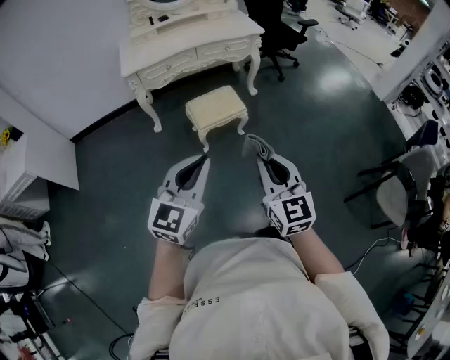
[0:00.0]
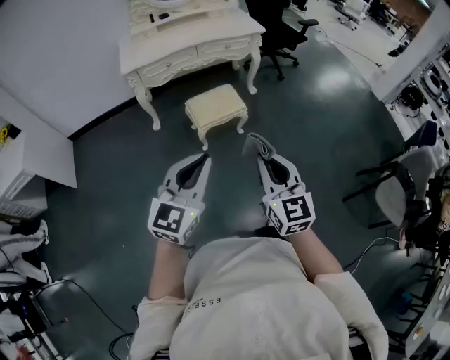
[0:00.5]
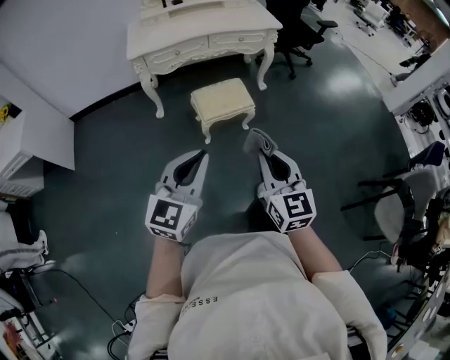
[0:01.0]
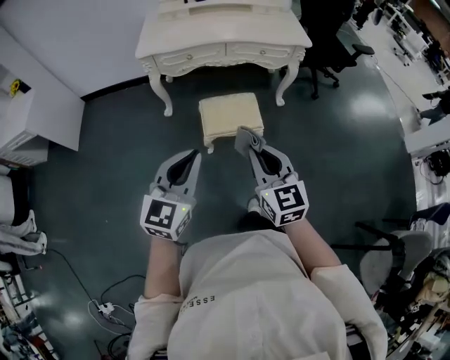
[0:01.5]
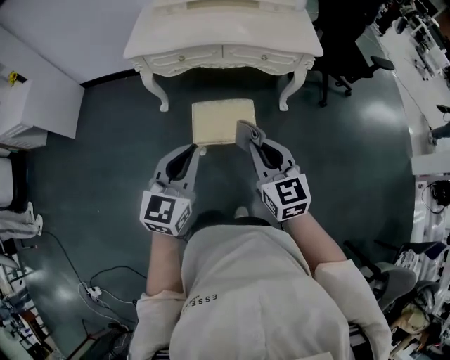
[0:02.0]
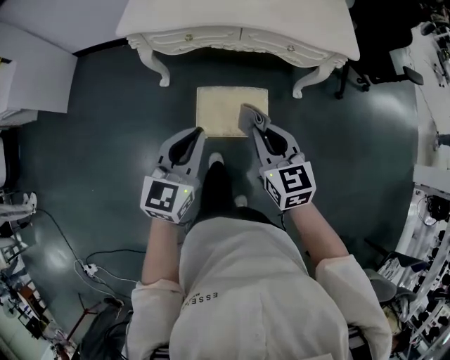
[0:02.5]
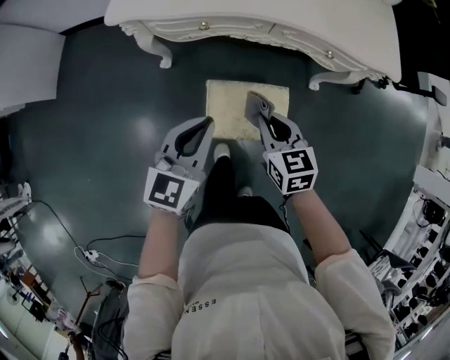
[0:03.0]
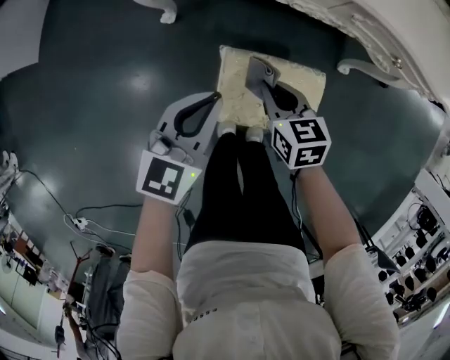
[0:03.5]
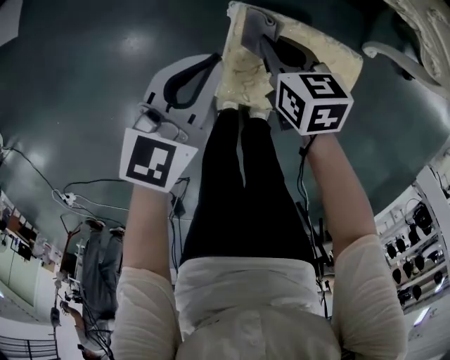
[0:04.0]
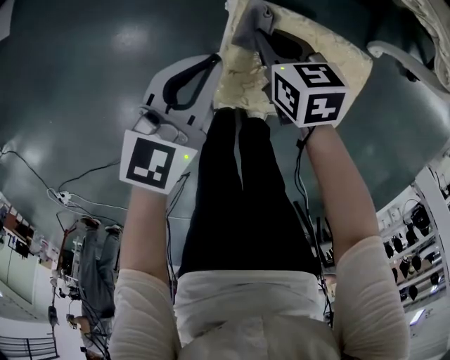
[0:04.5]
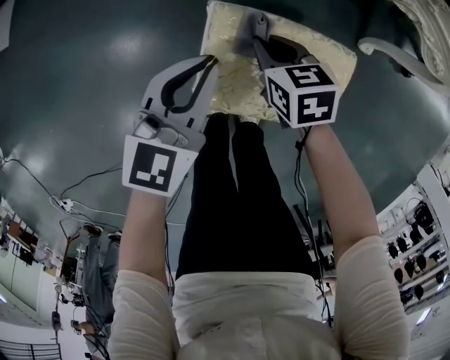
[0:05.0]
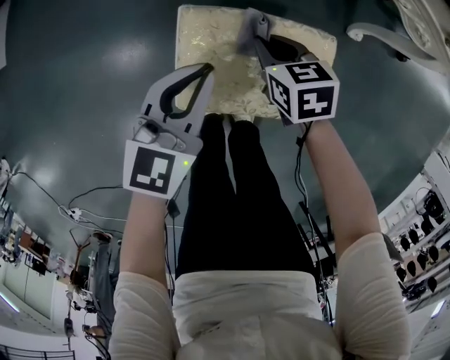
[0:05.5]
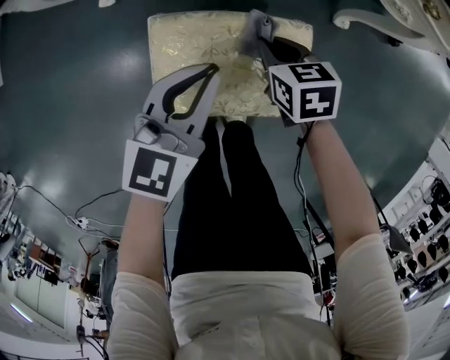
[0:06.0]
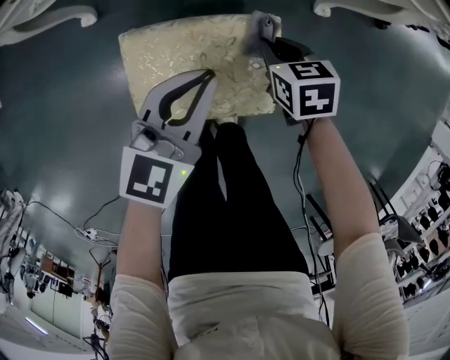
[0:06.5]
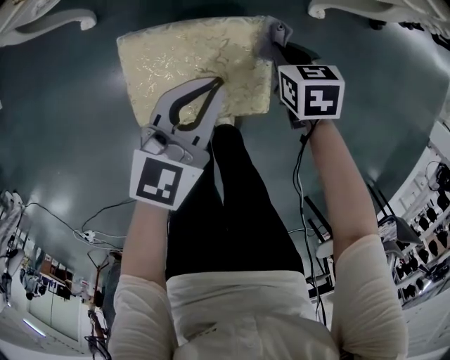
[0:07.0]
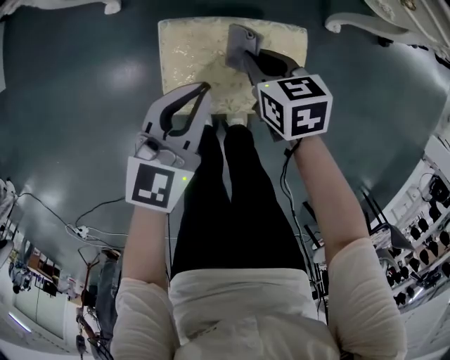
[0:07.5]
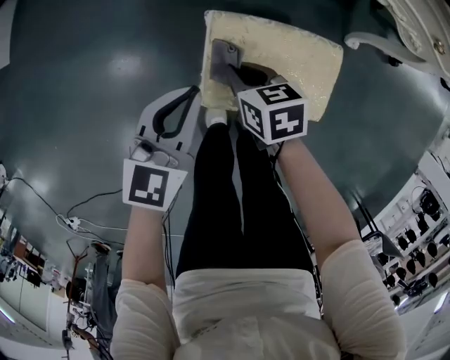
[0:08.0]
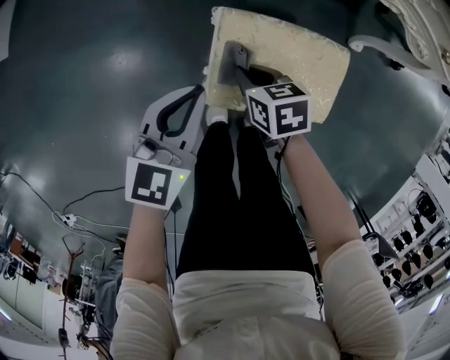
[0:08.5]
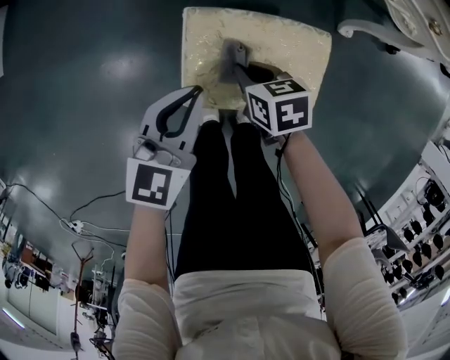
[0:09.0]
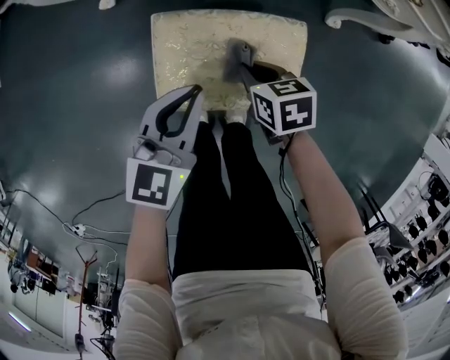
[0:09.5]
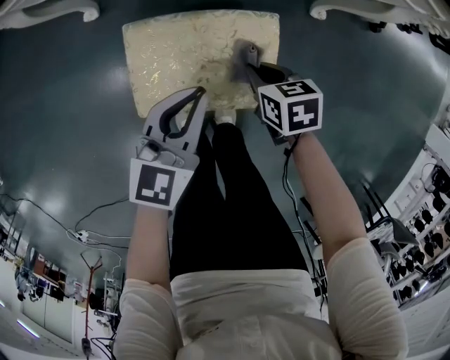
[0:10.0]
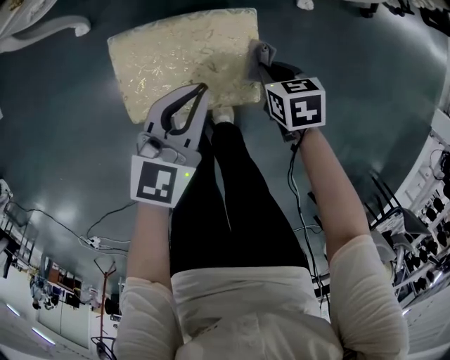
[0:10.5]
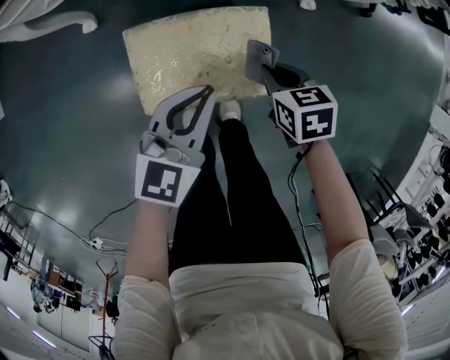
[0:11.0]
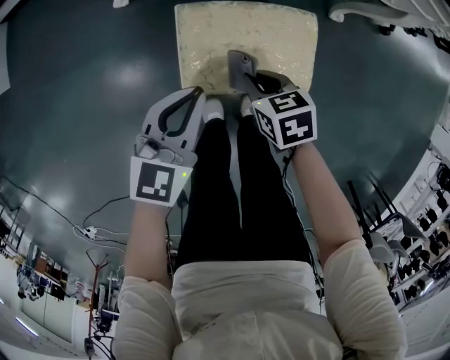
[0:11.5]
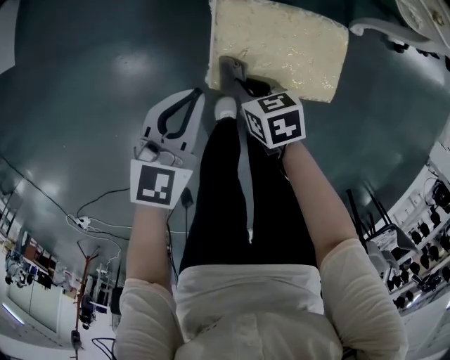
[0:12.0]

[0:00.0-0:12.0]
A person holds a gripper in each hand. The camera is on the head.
0:00.0 to 0:02.0: The left gripper moves about 35 cm, and swivels about 30 degrees; the right gripper ends up roughly 40 cm from where it was, and rotates some 30 degrees.
0:02.0 to 0:04.0: The two grippers go about 60 cm downward and forward. The right gripper angles its fingers downward, by approximately 30 degrees.
0:04.0 to 0:06.0: Both grippers move to the right, roughly 15 cm.
0:06.0 to 0:08.0: The two grippers go some 15 cm to the left.
0:08.0 to 0:10.0: The two grippers go roughly 20 cm to the right.
0:10.0 to 0:12.0: The two grippers go approximately 20 cm to the left.

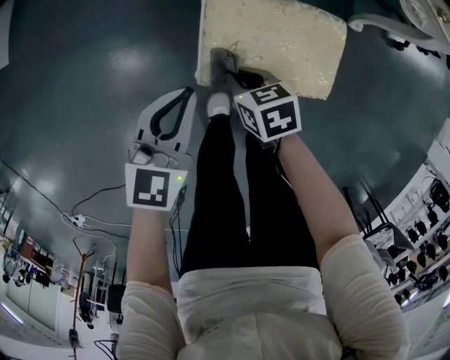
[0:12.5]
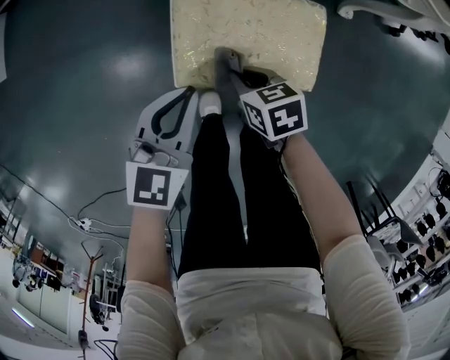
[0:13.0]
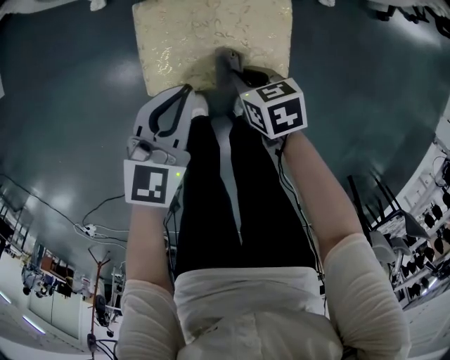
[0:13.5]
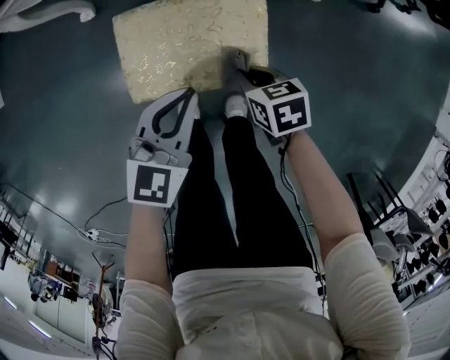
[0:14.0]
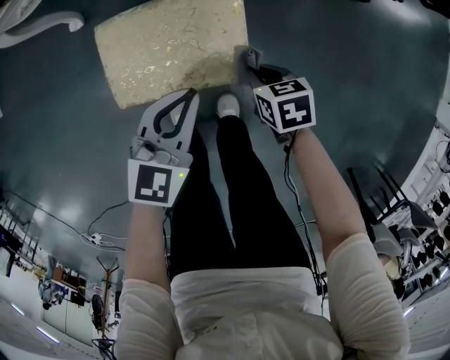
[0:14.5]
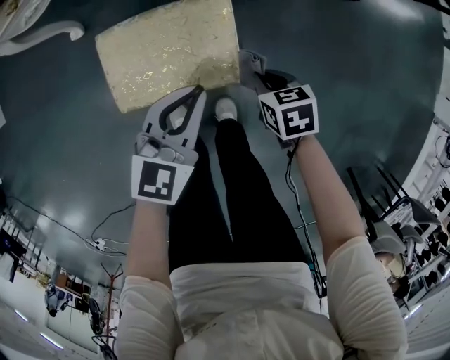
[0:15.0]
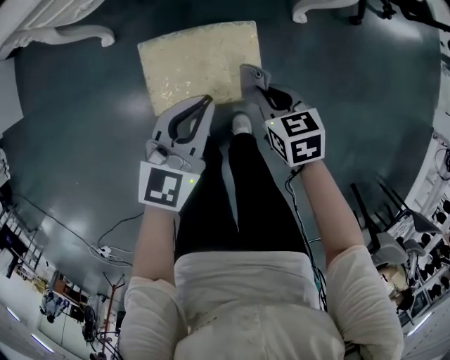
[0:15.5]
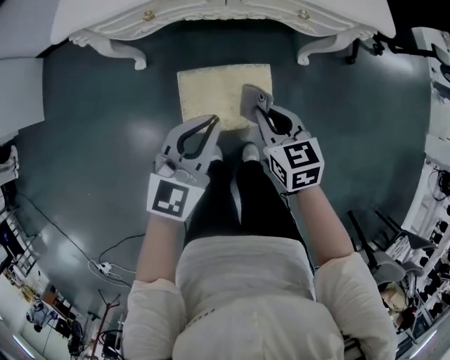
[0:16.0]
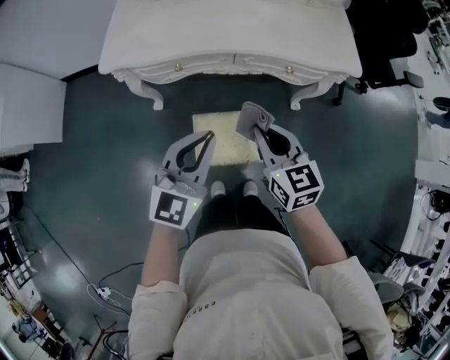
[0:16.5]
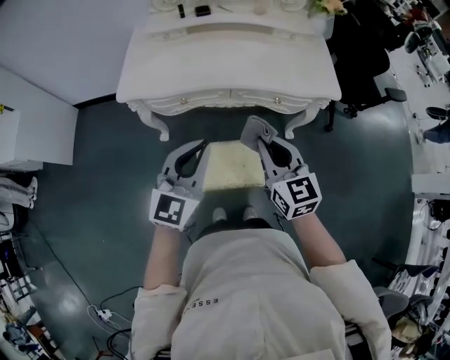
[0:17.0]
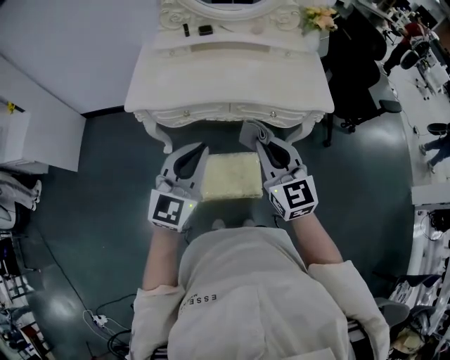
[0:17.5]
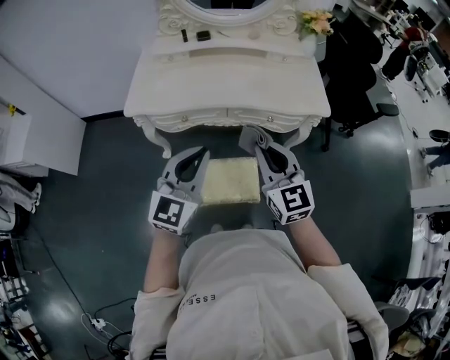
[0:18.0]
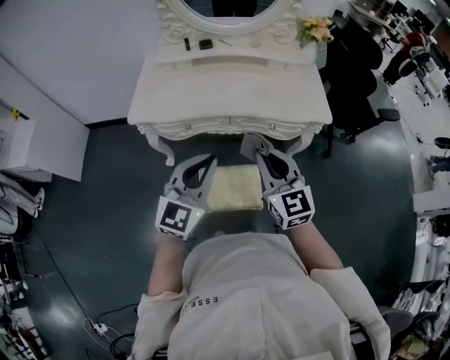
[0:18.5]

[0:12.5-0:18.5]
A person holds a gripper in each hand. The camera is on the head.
0:12.5 to 0:14.5: The grippers both shift to the right by about 25 cm.
0:14.5 to 0:16.5: Both grippers travel together upward, about 40 cm. The right gripper angles its fingers upward, by approximately 40 degrees. The left gripper swivels roughly 30 degrees.
0:16.5 to 0:18.5: The two grippers go approximately 15 cm upward. The right gripper changes its angle by approximately 20 degrees.

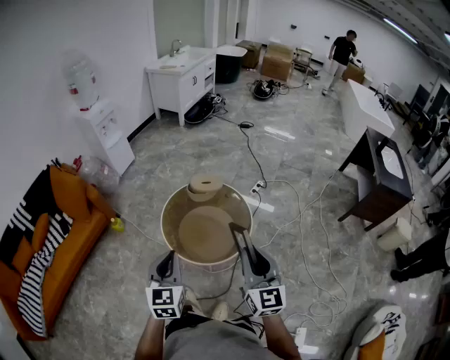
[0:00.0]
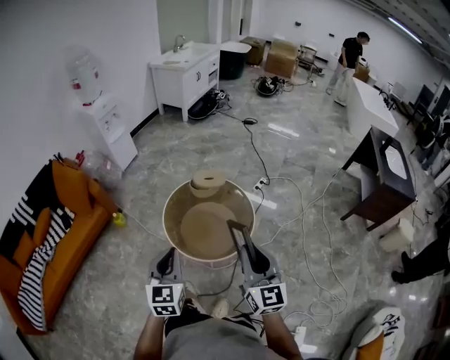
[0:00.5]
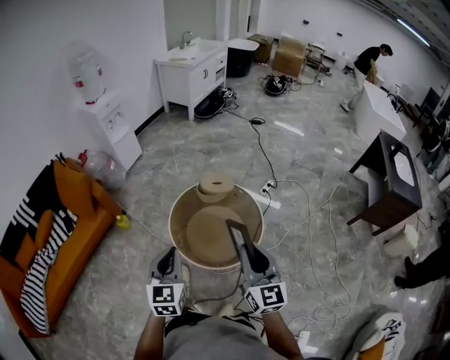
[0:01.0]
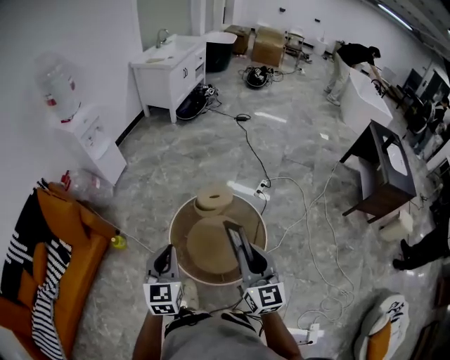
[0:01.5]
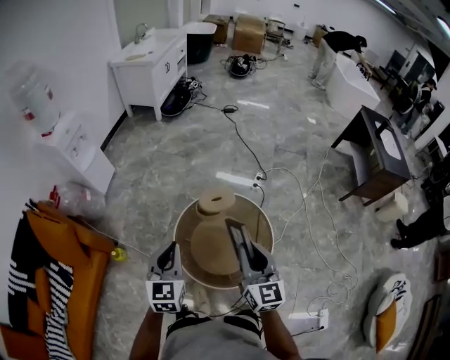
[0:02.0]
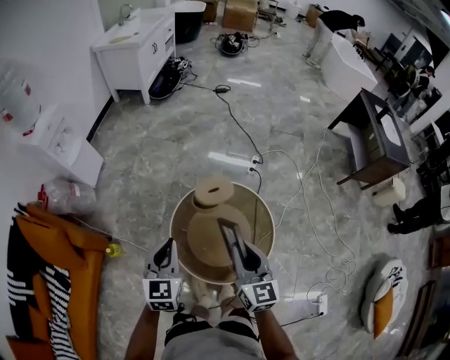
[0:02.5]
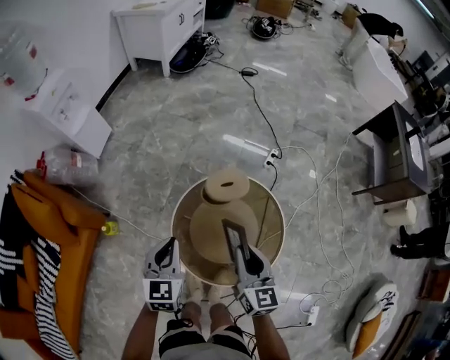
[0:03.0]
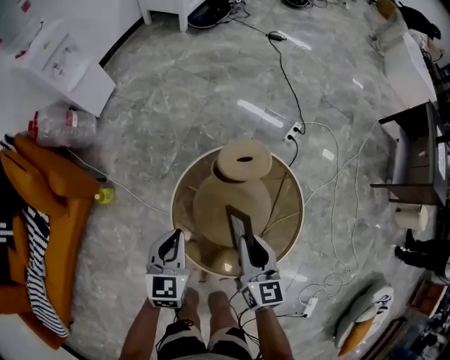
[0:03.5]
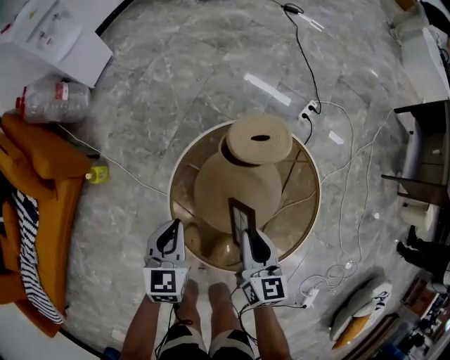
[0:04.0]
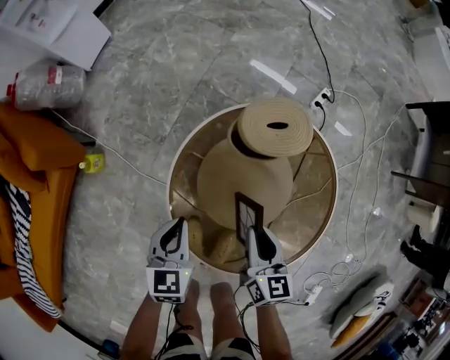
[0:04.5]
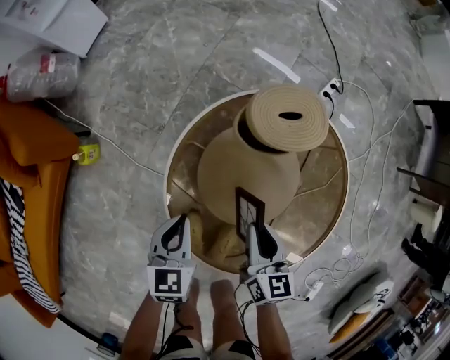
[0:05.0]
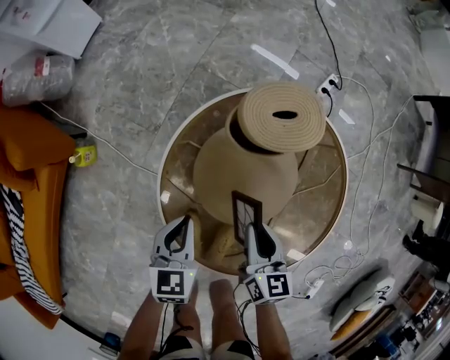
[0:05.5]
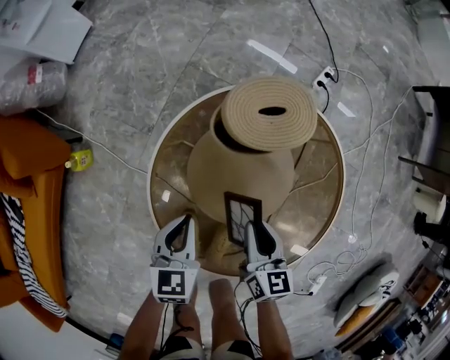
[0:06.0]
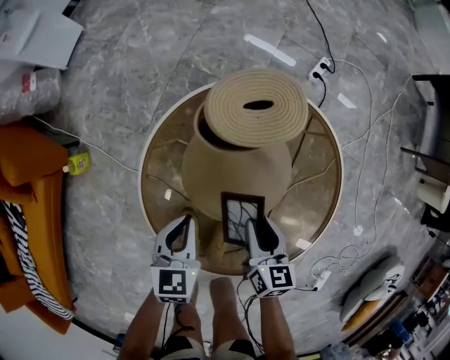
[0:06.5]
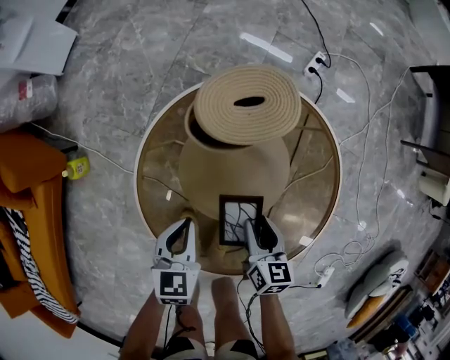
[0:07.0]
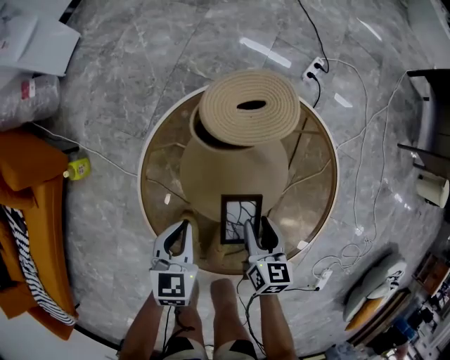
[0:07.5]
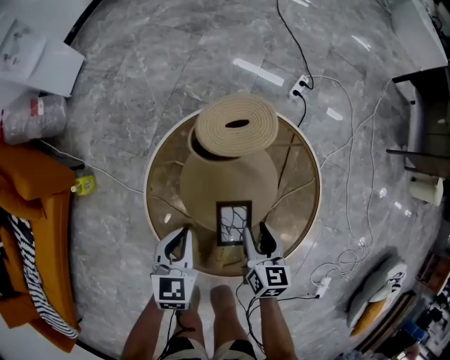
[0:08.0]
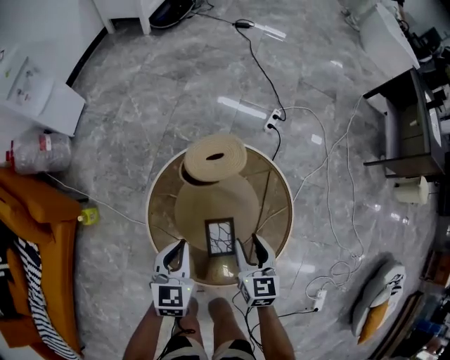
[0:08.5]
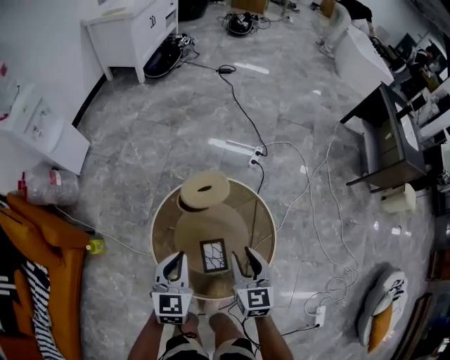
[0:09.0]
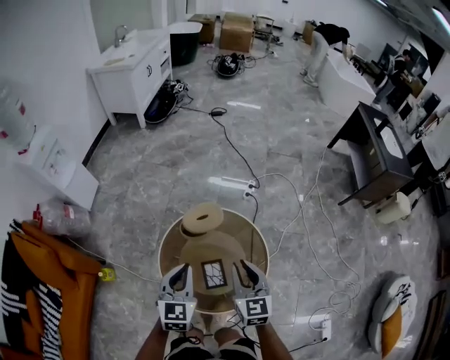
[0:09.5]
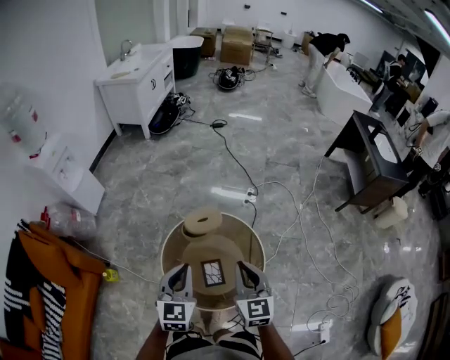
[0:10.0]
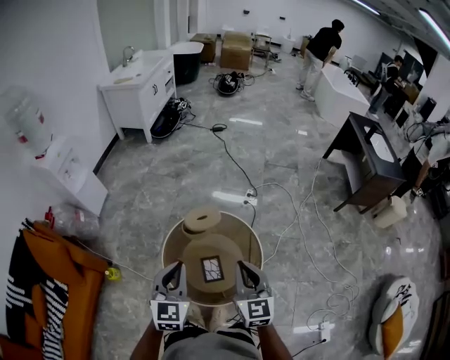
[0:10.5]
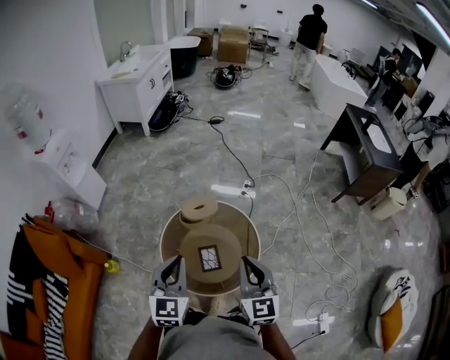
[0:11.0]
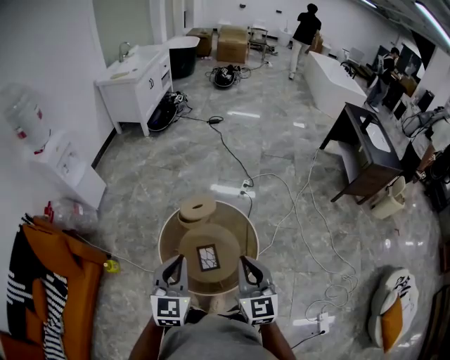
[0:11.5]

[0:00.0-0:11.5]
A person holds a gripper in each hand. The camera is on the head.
0:00.0 to 0:02.0: Both grippers travel together forward and to the left, roughly 35 cm.
0:02.0 to 0:04.0: Both grippers travel together downward, roughly 40 cm. The left gripper changes its angle by about 20 degrees, while the right gripper swivels approximately 30 degrees.
0:04.0 to 0:06.0: The left gripper moves downward and to the right, approximately 15 cm. The right gripper moves downward, roughly 15 cm.
0:06.0 to 0:07.5: The right gripper moves approximately 5 cm, and opens.
0:07.5 to 0:09.5: Both grippers travel together upward, approximately 50 cm. The right gripper rotates roughly 30 degrees, and closes its fingers, while the left gripper changes its angle by approximately 30 degrees.
0:09.5 to 0:11.5: The left gripper heads upward and backward, covering some 20 cm; the right gripper heads backward and upward, covering about 20 cm.
